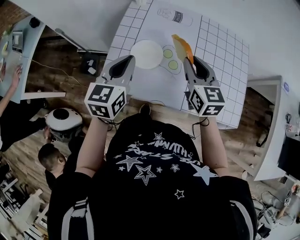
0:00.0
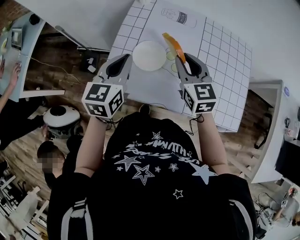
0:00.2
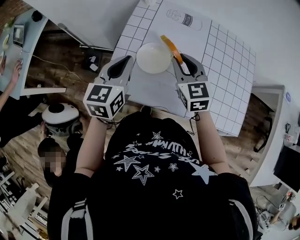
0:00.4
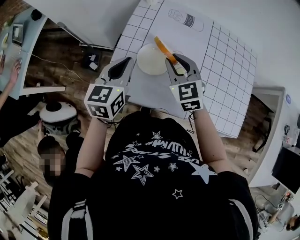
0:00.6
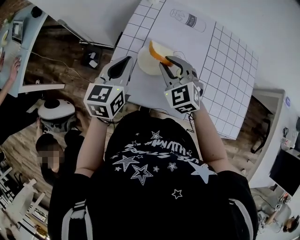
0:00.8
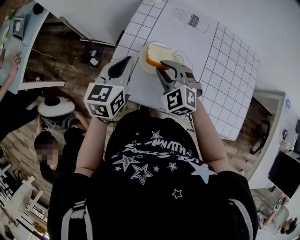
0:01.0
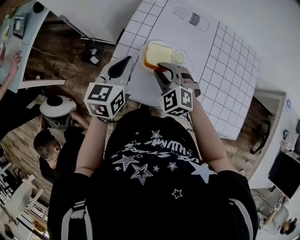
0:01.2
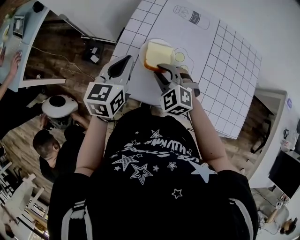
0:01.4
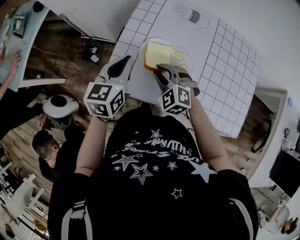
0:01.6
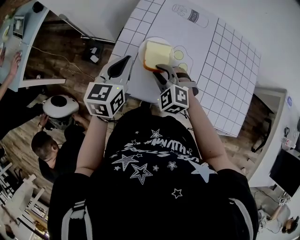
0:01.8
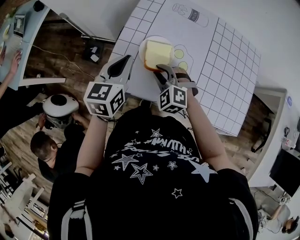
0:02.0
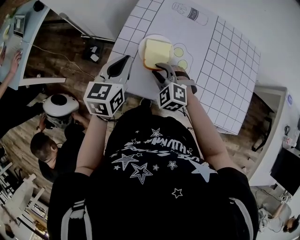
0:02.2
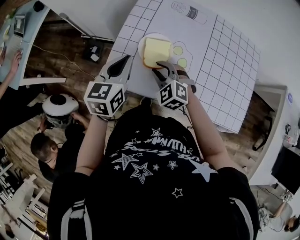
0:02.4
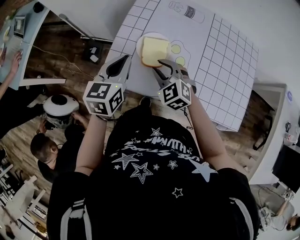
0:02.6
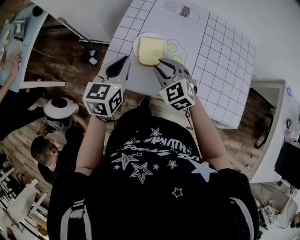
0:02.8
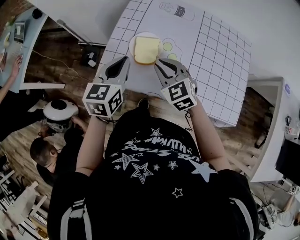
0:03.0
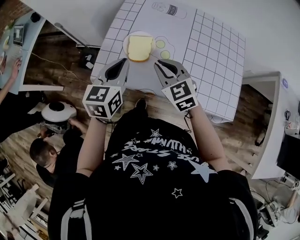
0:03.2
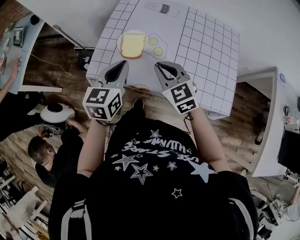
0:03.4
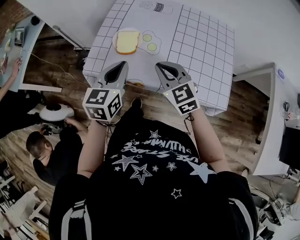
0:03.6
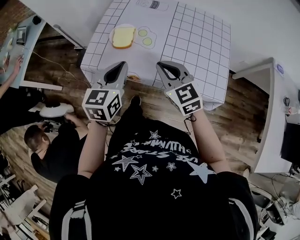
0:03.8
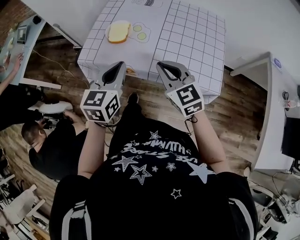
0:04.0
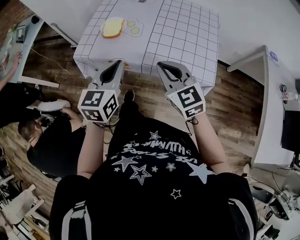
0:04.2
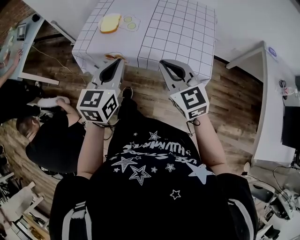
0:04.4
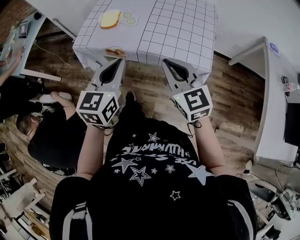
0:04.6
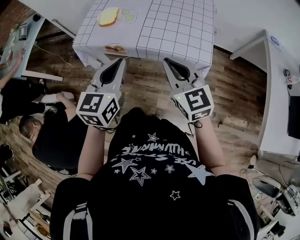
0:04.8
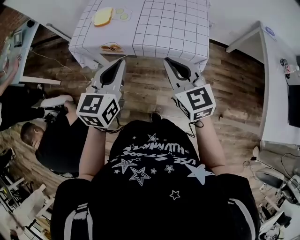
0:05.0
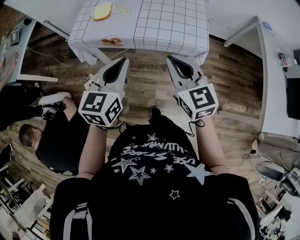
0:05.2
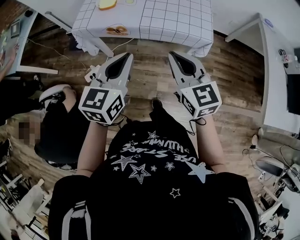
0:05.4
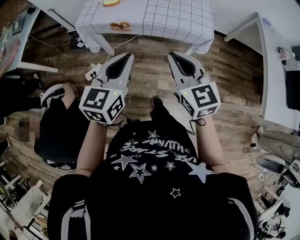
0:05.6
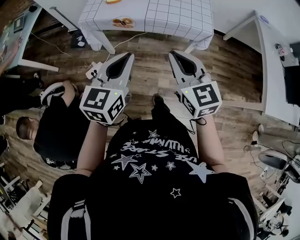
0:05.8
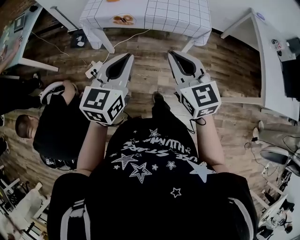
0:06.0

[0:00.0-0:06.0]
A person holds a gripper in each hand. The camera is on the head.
0:00.0 to 0:01.6: The left gripper moves downward, roughly 5 cm. The right gripper travels to the left and downward by some 20 cm, and rolls counterclockwise, seen from behind, by roughly 50 degrees.
0:01.6 to 0:03.0: The left gripper moves backward, some 5 cm. The right gripper shifts roughly 5 cm upward, and changes its angle by some 30 degrees.
0:03.0 to 0:04.4: The two grippers go some 30 cm backward and to the right.
0:04.4 to 0:06.0: Both grippers move backward, about 25 cm.

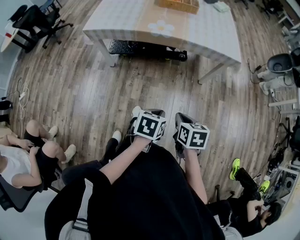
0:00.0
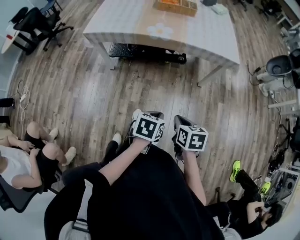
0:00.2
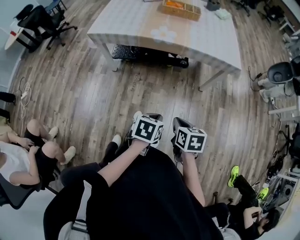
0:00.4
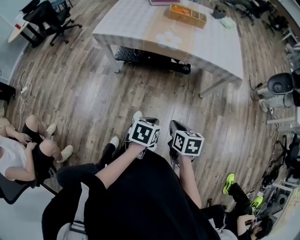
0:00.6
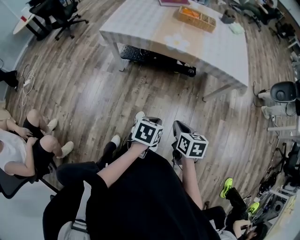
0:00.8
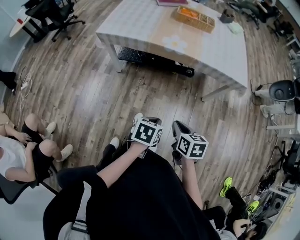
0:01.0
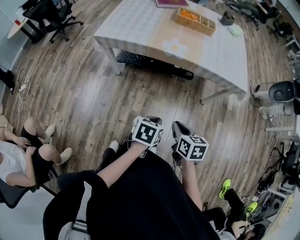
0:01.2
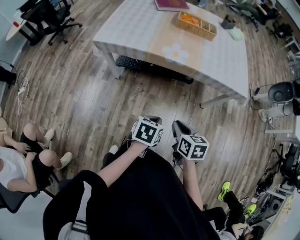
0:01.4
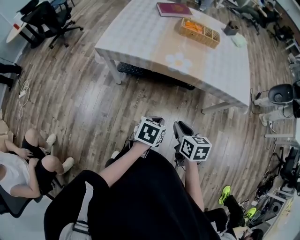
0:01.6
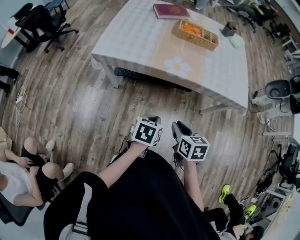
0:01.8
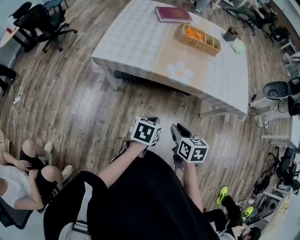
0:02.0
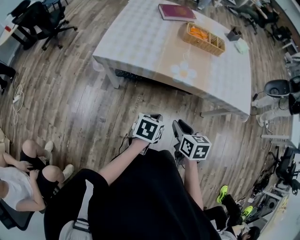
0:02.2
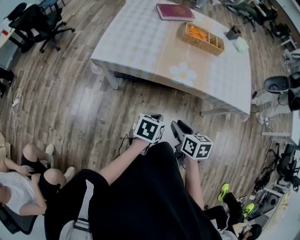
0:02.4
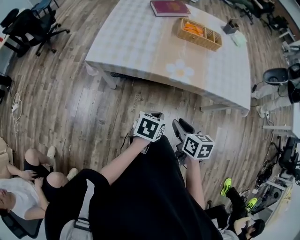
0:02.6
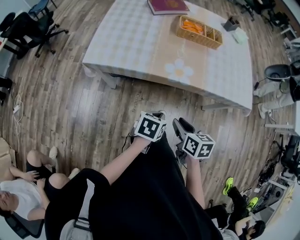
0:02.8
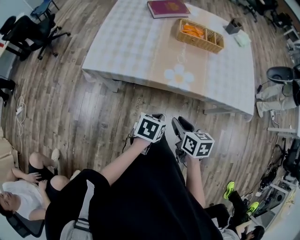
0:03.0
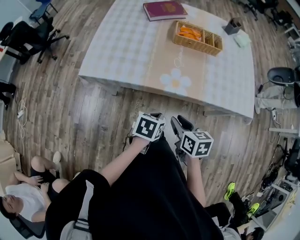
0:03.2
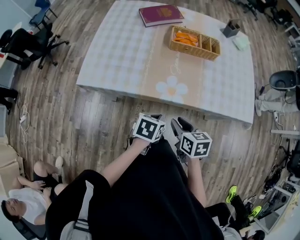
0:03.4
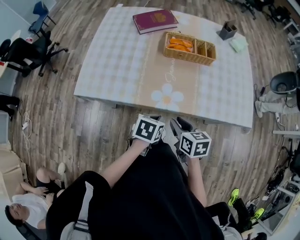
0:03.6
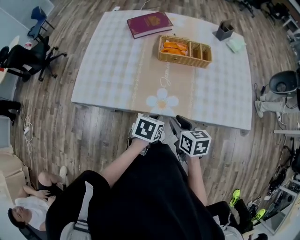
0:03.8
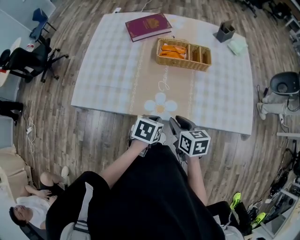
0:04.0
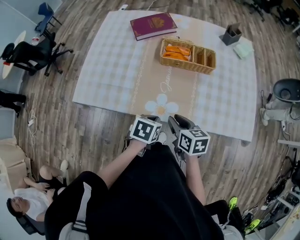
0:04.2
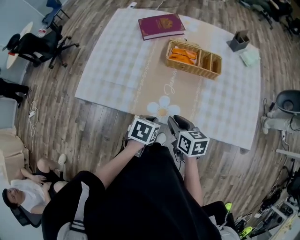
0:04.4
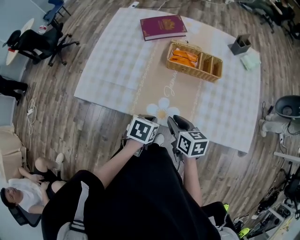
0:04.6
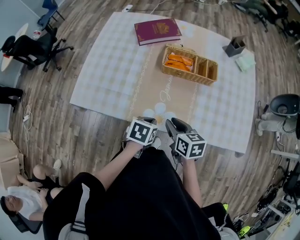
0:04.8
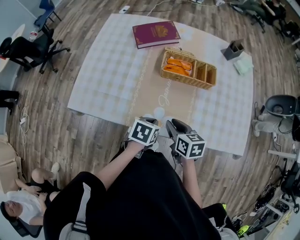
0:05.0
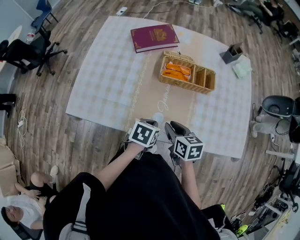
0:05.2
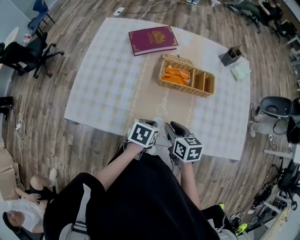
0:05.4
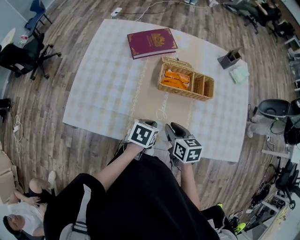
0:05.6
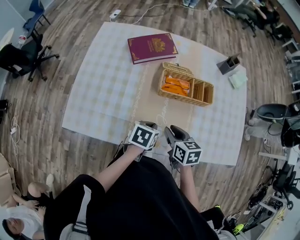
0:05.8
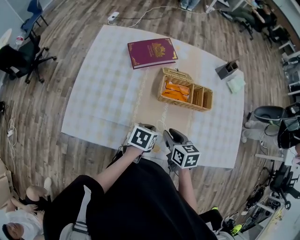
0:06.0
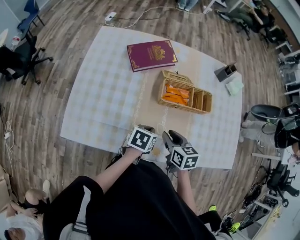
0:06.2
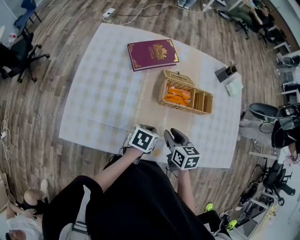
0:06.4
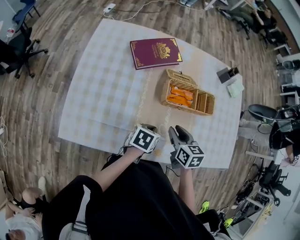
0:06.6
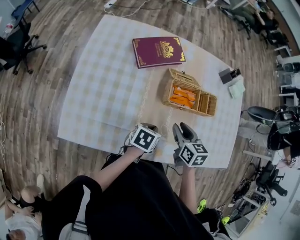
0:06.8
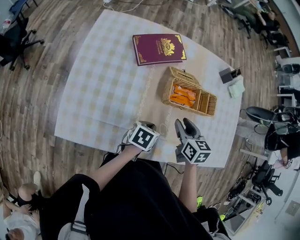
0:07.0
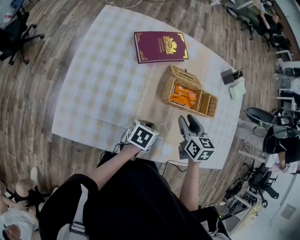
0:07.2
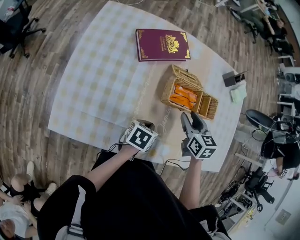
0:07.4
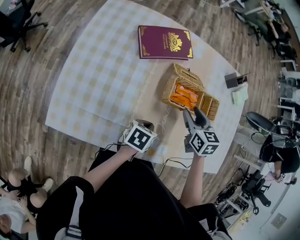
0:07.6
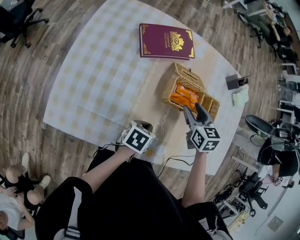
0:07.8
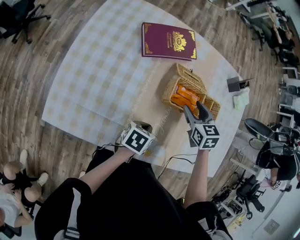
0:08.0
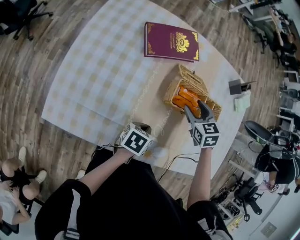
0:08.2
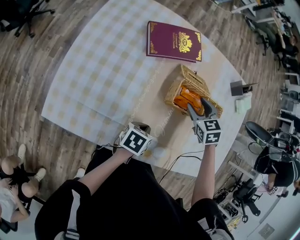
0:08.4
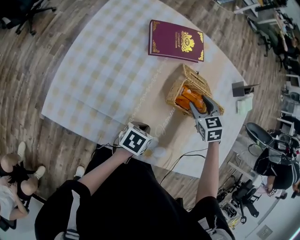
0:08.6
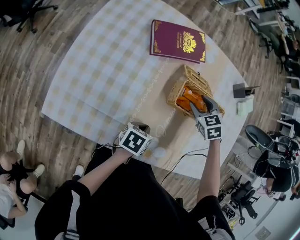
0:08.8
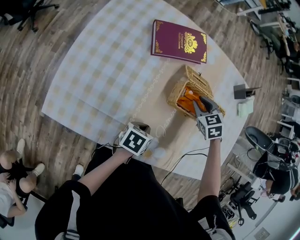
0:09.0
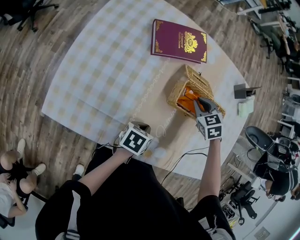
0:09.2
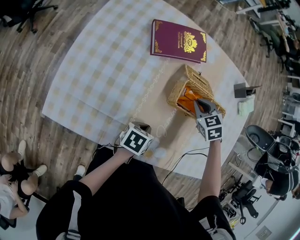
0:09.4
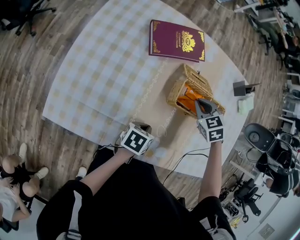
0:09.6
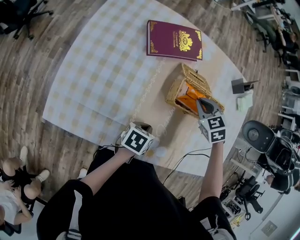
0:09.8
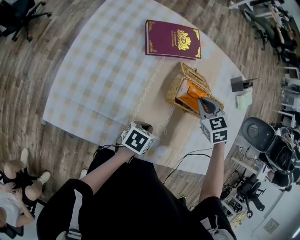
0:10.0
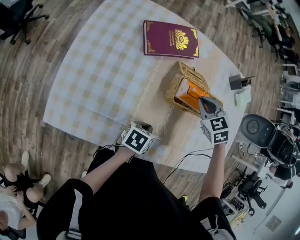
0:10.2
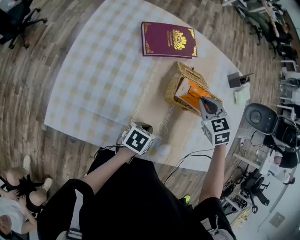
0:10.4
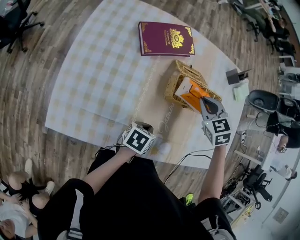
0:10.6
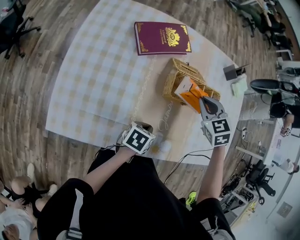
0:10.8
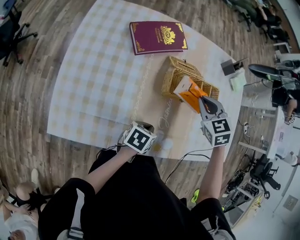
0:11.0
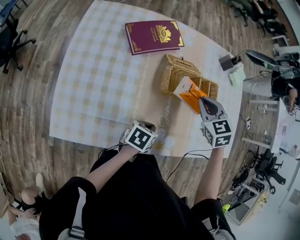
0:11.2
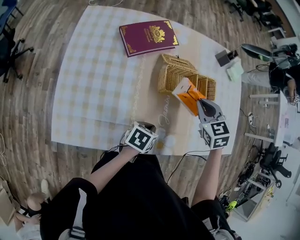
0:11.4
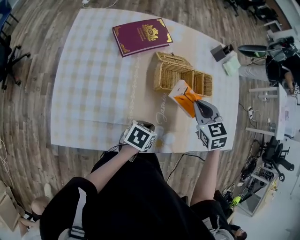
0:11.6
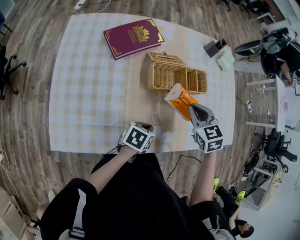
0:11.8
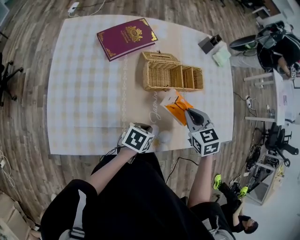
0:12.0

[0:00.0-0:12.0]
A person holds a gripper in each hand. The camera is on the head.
0:00.0 to 0:01.6: The two grippers go roughly 20 cm forward and to the left.
0:01.6 to 0:03.0: The grippers both shift forward by roughly 15 cm.
0:03.0 to 0:04.4: Both grippers travel together forward, about 20 cm.
0:04.4 to 0:06.0: Both grippers travel together forward, approximately 15 cm.
0:06.0 to 0:07.6: The right gripper shifts approximately 15 cm forward. The left gripper changes place by approximately 5 cm.
0:07.6 to 0:09.0: The right gripper travels forward and downward by some 10 cm, and changes its angle by approximately 40 degrees.
0:09.0 to 0:10.4: The right gripper travels upward by roughly 10 cm, and closes up.
0:10.4 to 0:12.0: The right gripper travels backward and to the right by approximately 15 cm, and turns by about 30 degrees. Meanwhile the left gripper shifts approximately 5 cm to the right.

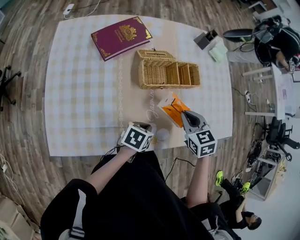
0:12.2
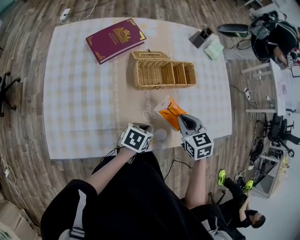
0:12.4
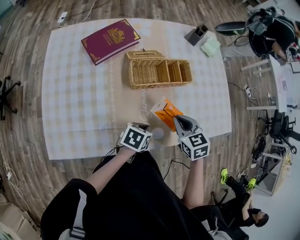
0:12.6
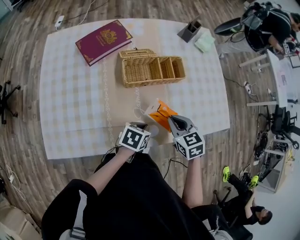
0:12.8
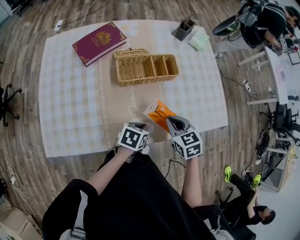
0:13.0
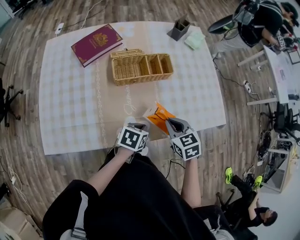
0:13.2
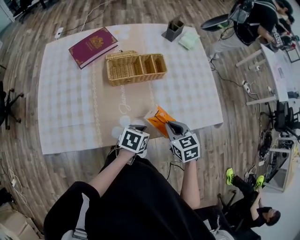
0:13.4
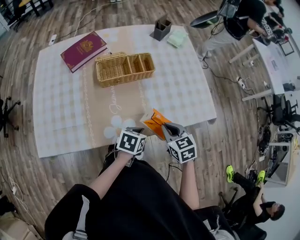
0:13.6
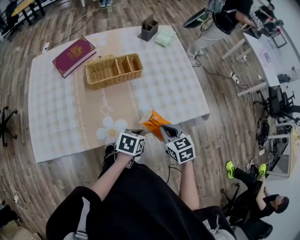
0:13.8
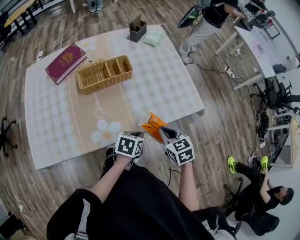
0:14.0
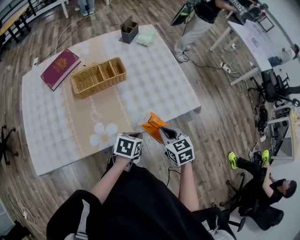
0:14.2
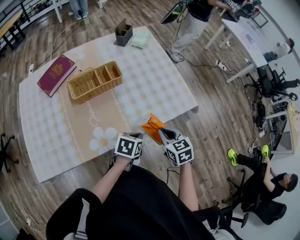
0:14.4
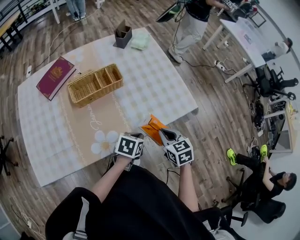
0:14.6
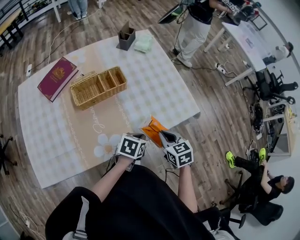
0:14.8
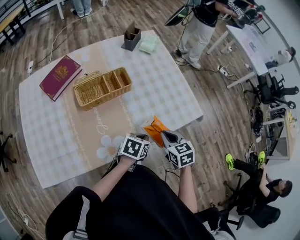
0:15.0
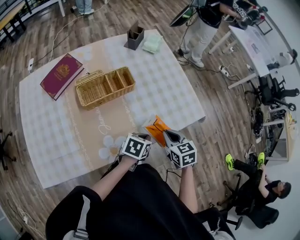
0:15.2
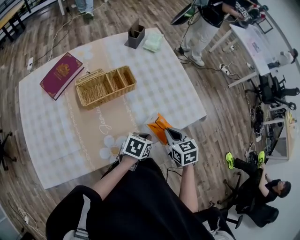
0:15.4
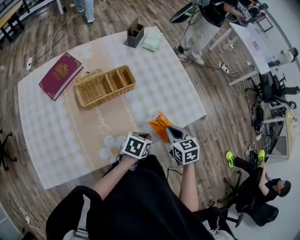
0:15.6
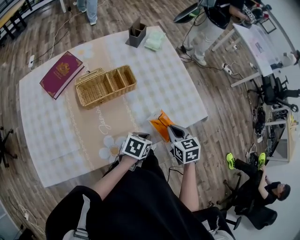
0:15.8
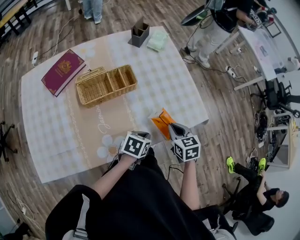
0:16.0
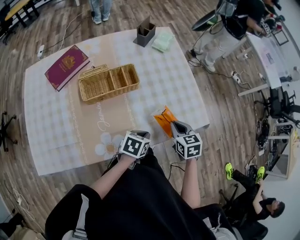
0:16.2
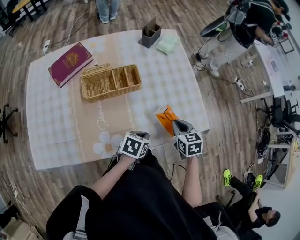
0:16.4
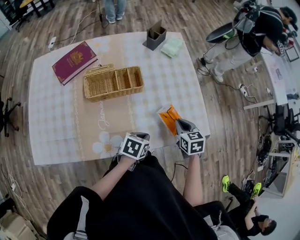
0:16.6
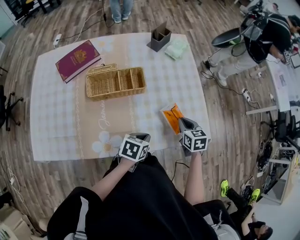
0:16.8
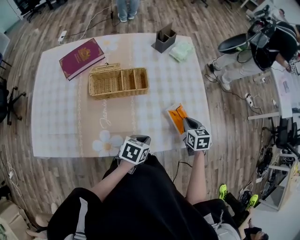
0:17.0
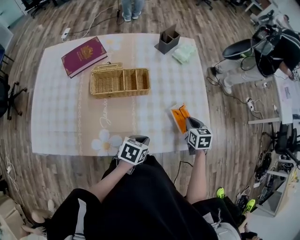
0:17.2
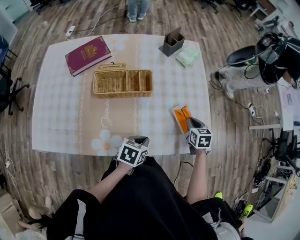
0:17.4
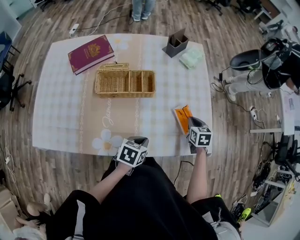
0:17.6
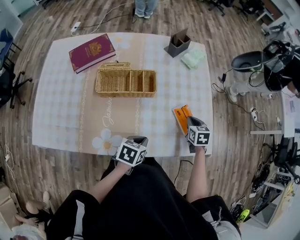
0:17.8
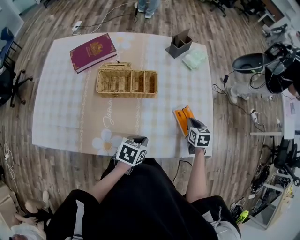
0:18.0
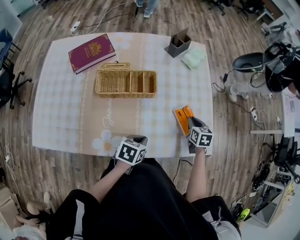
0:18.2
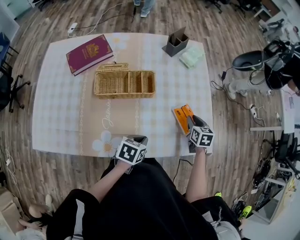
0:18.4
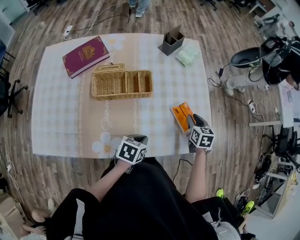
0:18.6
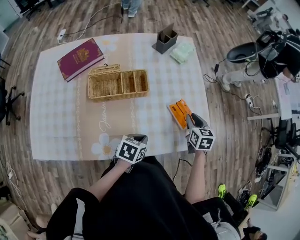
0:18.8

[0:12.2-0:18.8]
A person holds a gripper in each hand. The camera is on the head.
0:12.2 to 0:13.8: The left gripper is displaced to the right by some 20 cm, while the right gripper heads to the right and backward, covering about 25 cm.
0:13.8 to 0:15.4: The grippers both shift forward by some 5 cm.
0:15.4 to 0:17.2: The right gripper travels forward by roughly 20 cm; the left gripper swivels some 20 degrees.
0:17.2 to 0:18.8: The grippers move only a little.
